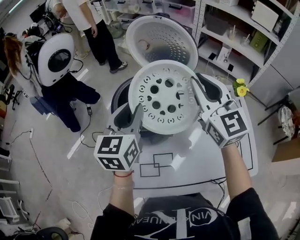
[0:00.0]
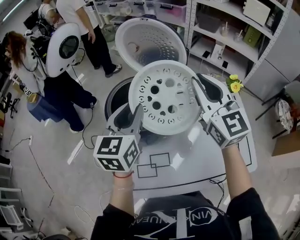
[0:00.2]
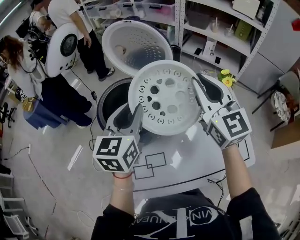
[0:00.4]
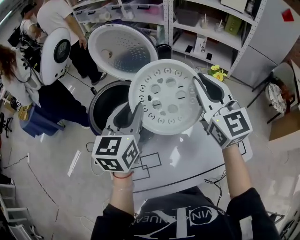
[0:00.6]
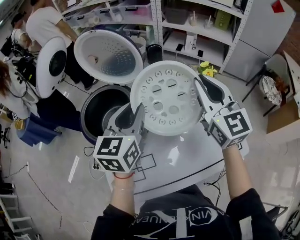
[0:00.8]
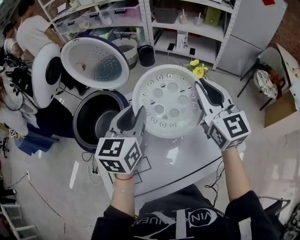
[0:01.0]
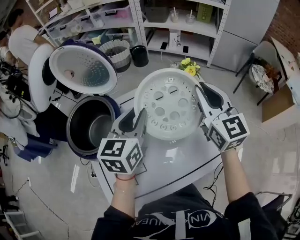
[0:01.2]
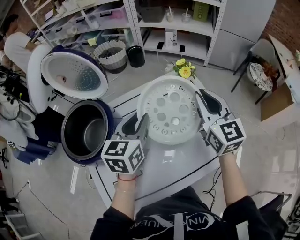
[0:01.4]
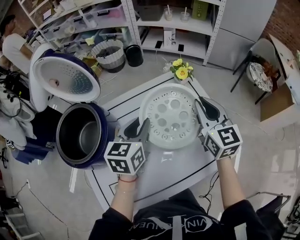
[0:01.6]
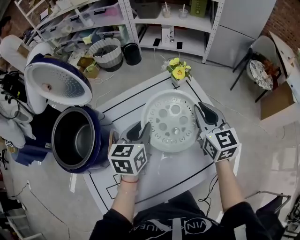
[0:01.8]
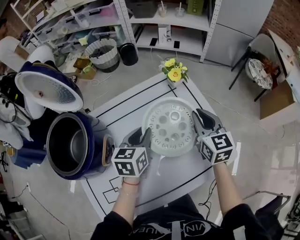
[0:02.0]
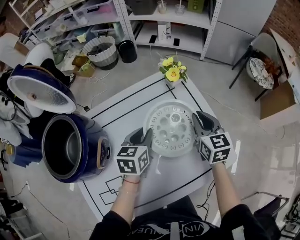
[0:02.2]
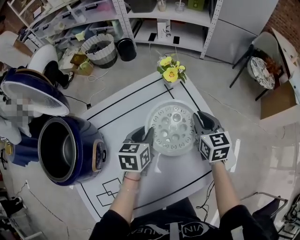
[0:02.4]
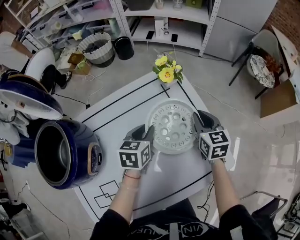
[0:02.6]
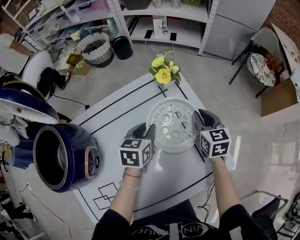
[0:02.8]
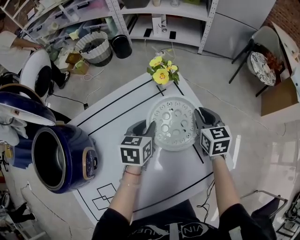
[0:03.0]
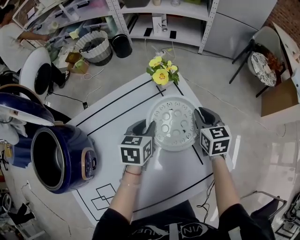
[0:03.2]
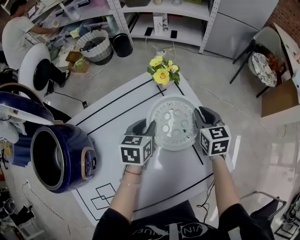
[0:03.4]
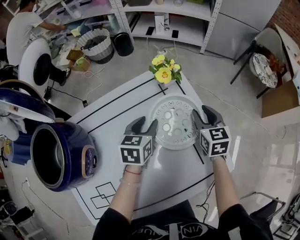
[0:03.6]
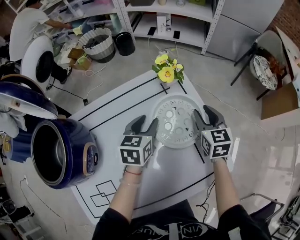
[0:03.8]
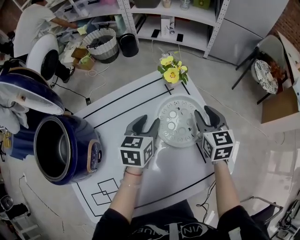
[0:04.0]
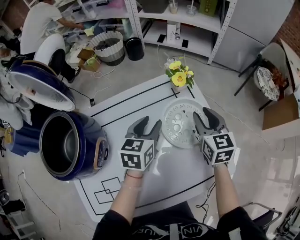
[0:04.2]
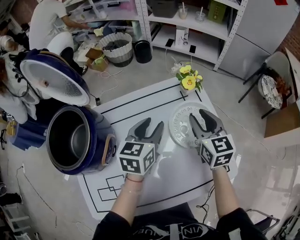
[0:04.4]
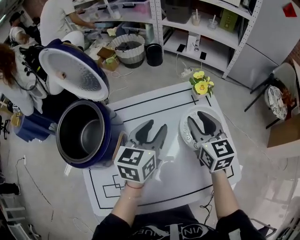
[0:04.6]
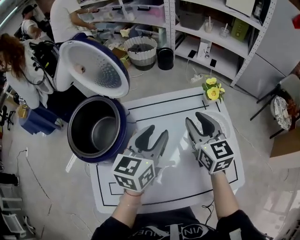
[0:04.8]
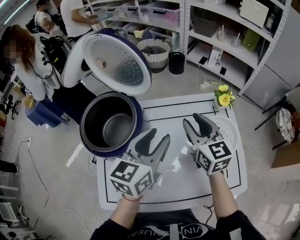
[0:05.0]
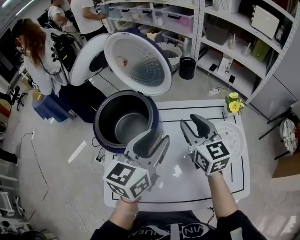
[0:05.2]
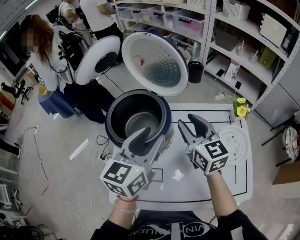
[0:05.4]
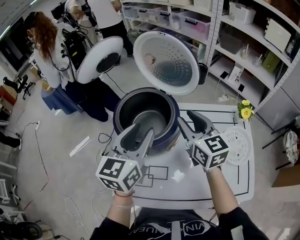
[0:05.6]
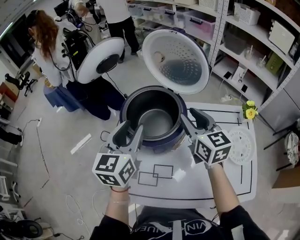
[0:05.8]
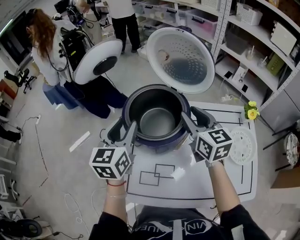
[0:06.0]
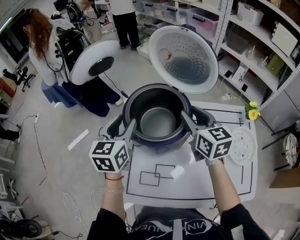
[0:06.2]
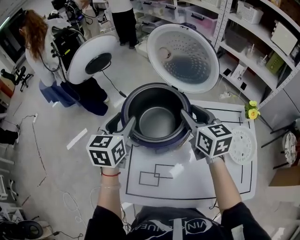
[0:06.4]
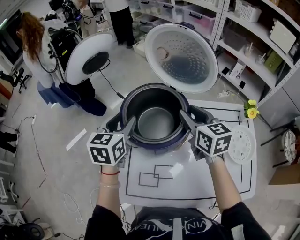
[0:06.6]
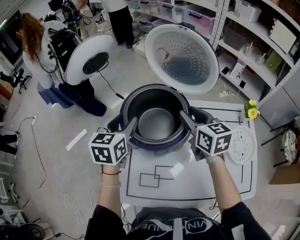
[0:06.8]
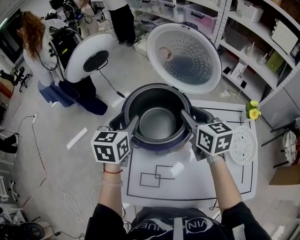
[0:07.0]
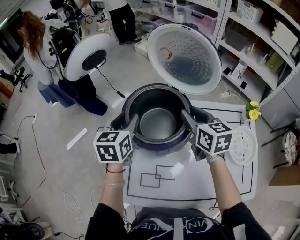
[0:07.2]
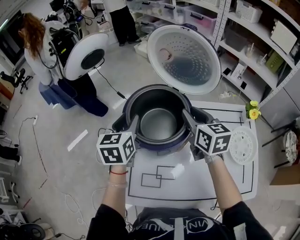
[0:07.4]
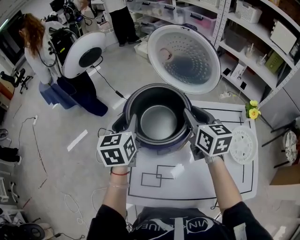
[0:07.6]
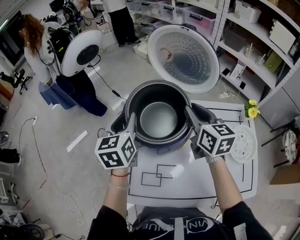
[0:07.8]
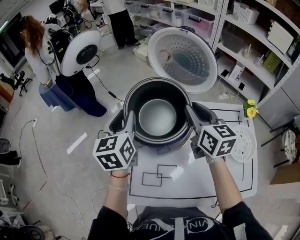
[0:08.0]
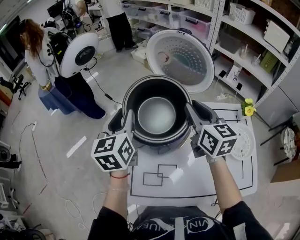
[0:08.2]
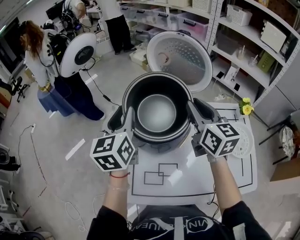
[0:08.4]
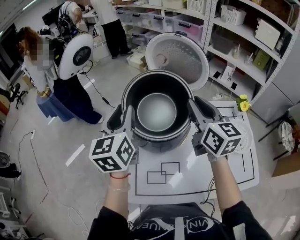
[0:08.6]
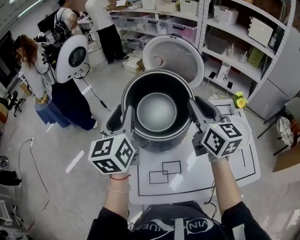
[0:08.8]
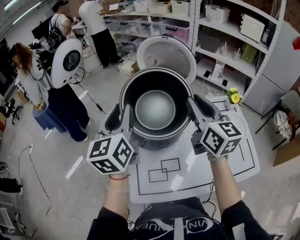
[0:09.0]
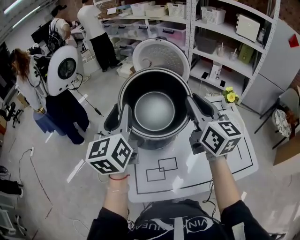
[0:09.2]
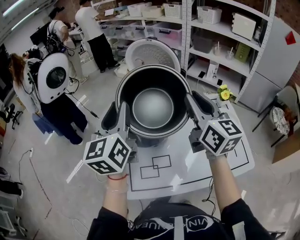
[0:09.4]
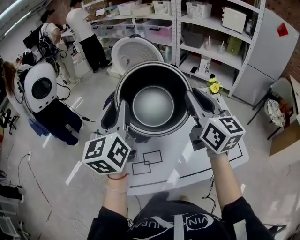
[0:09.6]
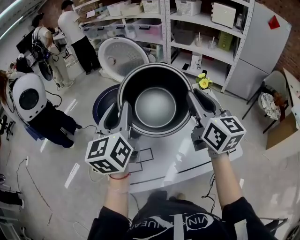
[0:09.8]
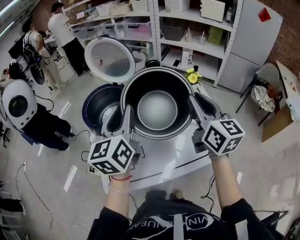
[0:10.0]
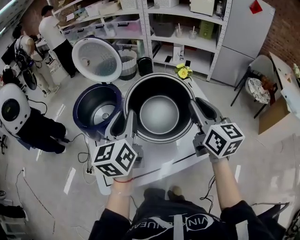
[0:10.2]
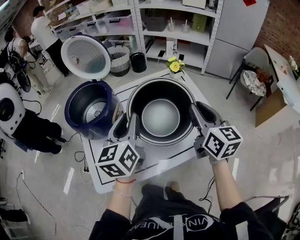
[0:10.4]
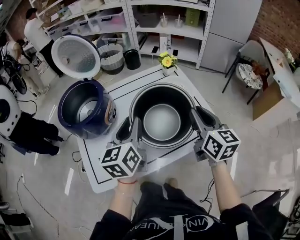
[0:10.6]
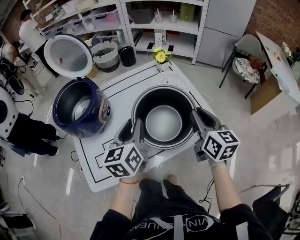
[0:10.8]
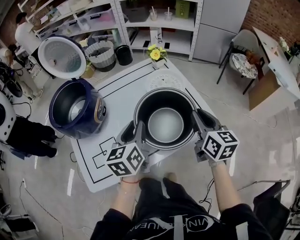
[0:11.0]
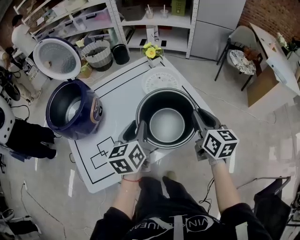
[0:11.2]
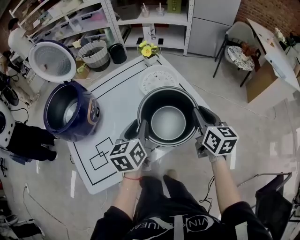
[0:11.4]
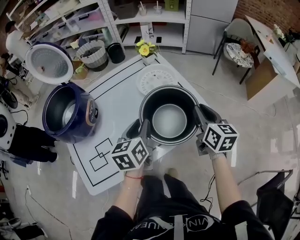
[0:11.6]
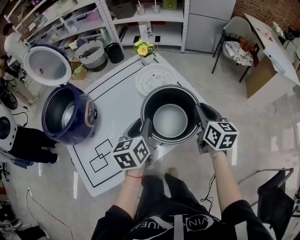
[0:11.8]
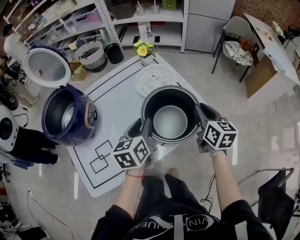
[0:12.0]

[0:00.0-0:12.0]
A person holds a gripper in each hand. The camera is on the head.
0:00.0 to 0:01.6: The left gripper moves some 35 cm, and turns by some 30 degrees; the right gripper moves about 35 cm, and swivels about 30 degrees.
0:01.6 to 0:03.0: Both grippers travel together downward, to the right and forward, roughly 25 cm. The right gripper rotates about 20 degrees.
0:03.0 to 0:04.4: The left gripper shifts about 10 cm upward and to the left. Meanwhile the right gripper goes some 15 cm to the left and upward, and opens its fingers.
0:04.4 to 0:06.0: The left gripper moves about 50 cm, and turns by roughly 40 degrees; the right gripper ends up some 40 cm from where it was, and rotates some 30 degrees.
0:06.0 to 0:07.6: The left gripper ends up roughly 5 cm from where it was.
0:07.6 to 0:09.0: Both grippers move upward and backward, roughly 15 cm. The left gripper swivels approximately 20 degrees; the right gripper turns by approximately 20 degrees.
0:09.0 to 0:10.4: The right gripper travels to the right and backward by roughly 35 cm. The left gripper goes about 30 cm to the right, and turns by some 20 degrees.
0:10.4 to 0:12.0: The two grippers go some 20 cm to the right and downward. The left gripper rotates some 20 degrees. Meanwhile the right gripper swivels some 20 degrees.

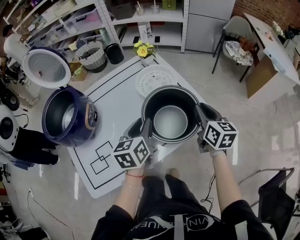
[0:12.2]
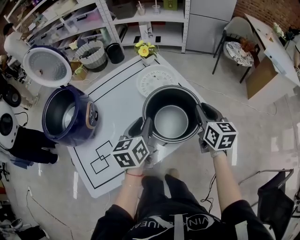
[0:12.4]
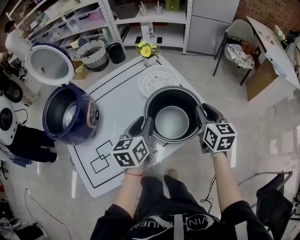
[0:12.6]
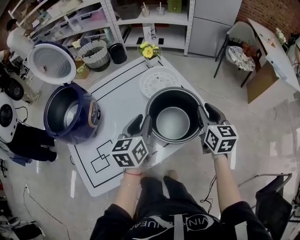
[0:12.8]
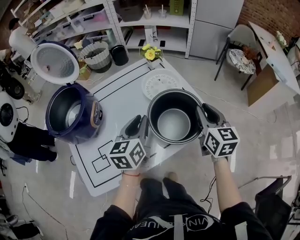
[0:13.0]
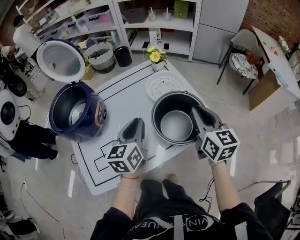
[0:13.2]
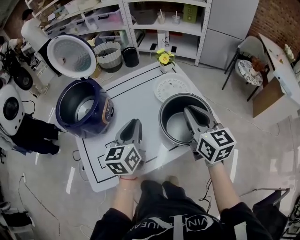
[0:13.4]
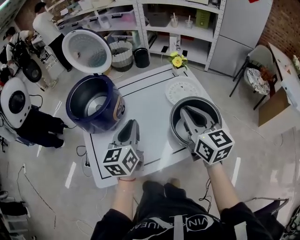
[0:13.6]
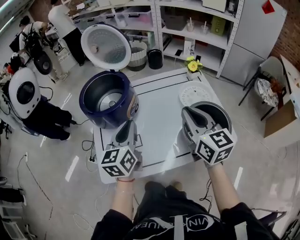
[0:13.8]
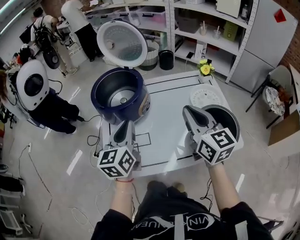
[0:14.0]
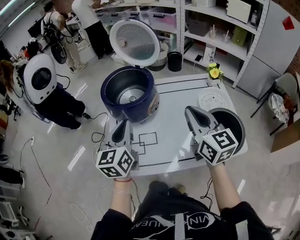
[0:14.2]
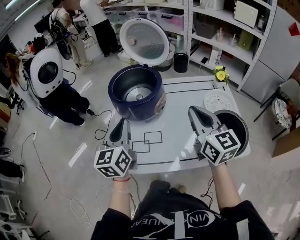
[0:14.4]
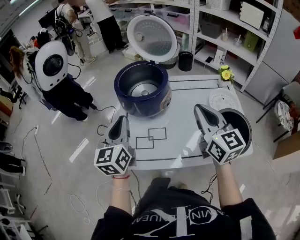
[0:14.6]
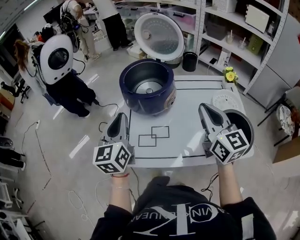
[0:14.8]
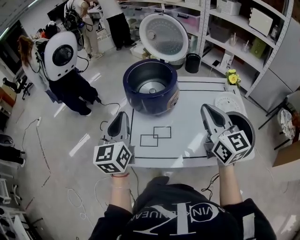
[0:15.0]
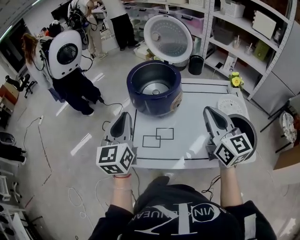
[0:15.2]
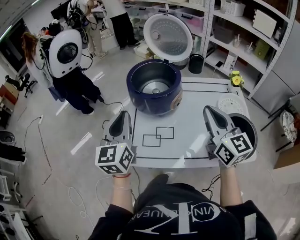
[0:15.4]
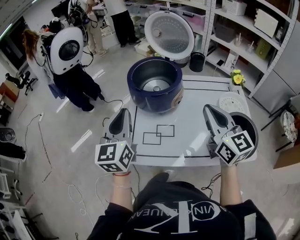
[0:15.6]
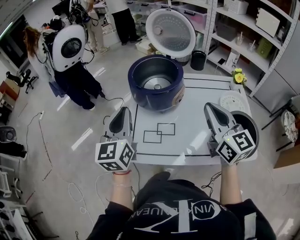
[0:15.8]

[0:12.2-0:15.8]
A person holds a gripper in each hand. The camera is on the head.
0:12.2 to 0:14.0: The right gripper moves some 30 cm, and changes its angle by about 40 degrees. The left gripper ends up roughly 30 cm from where it was, and changes its angle by roughly 30 degrees.
0:14.0 to 0:15.8: The left gripper is displaced to the left by about 15 cm. The right gripper travels to the left by about 5 cm.

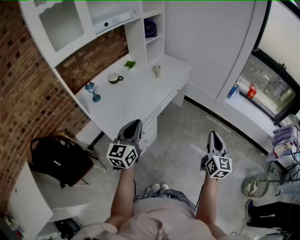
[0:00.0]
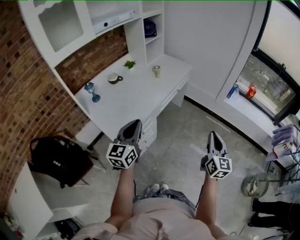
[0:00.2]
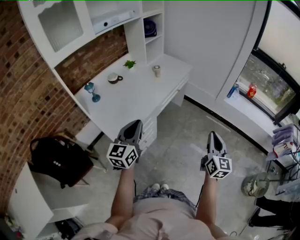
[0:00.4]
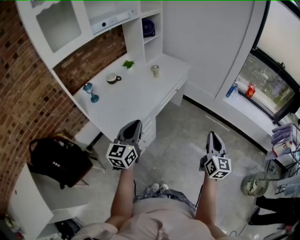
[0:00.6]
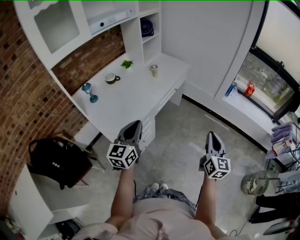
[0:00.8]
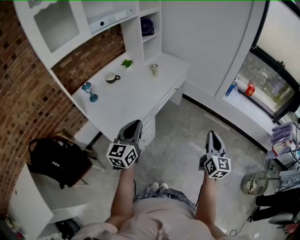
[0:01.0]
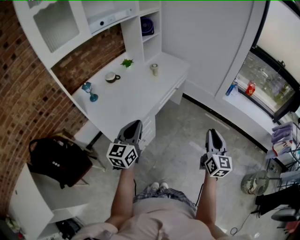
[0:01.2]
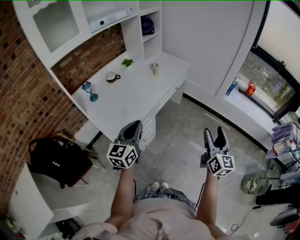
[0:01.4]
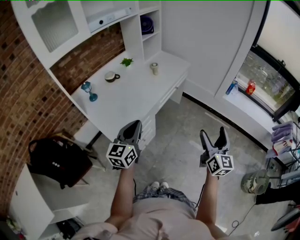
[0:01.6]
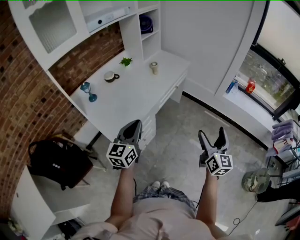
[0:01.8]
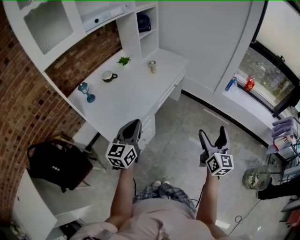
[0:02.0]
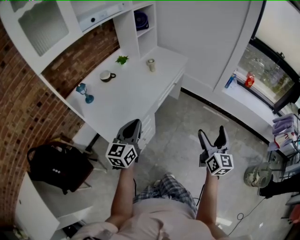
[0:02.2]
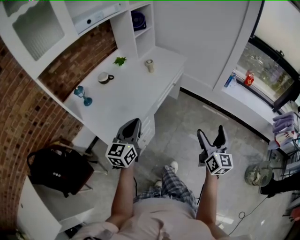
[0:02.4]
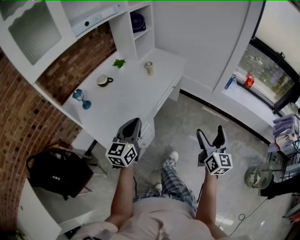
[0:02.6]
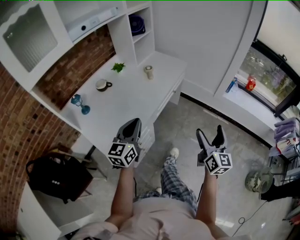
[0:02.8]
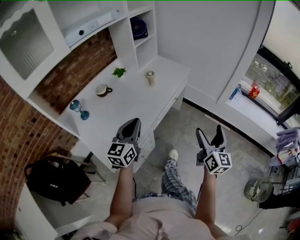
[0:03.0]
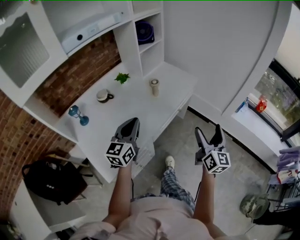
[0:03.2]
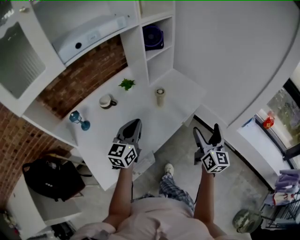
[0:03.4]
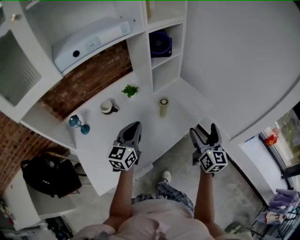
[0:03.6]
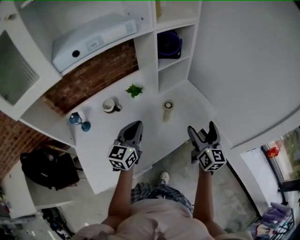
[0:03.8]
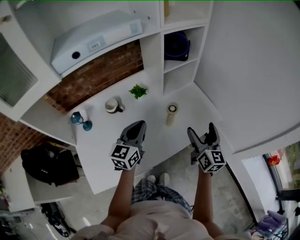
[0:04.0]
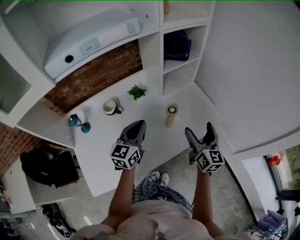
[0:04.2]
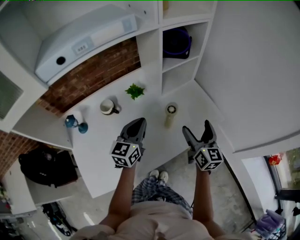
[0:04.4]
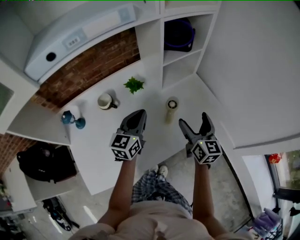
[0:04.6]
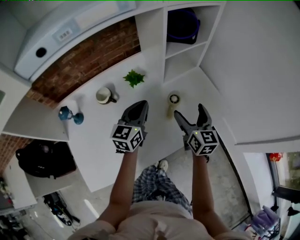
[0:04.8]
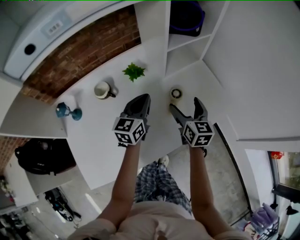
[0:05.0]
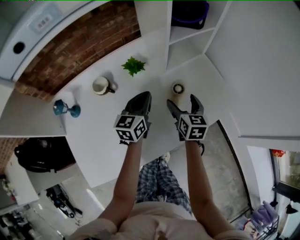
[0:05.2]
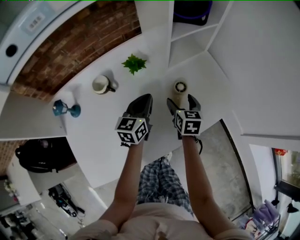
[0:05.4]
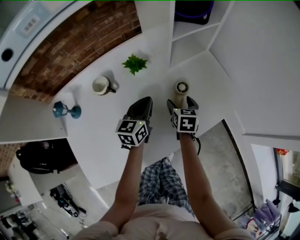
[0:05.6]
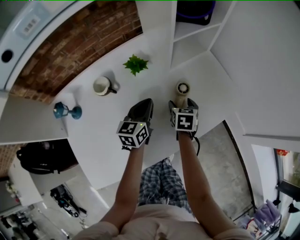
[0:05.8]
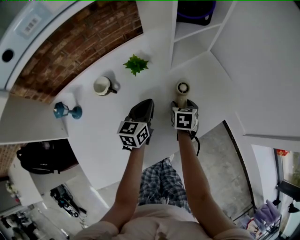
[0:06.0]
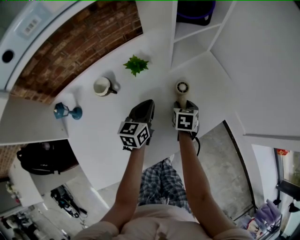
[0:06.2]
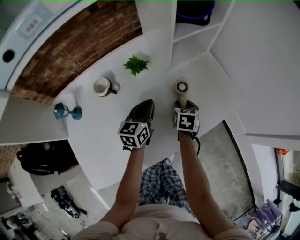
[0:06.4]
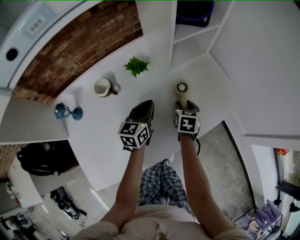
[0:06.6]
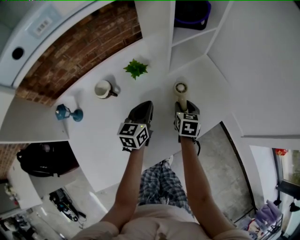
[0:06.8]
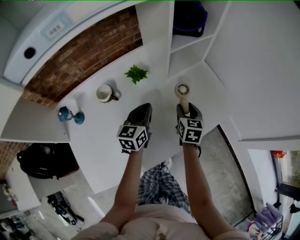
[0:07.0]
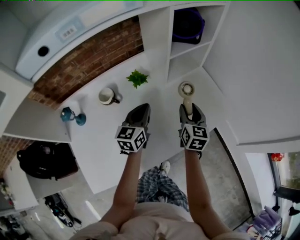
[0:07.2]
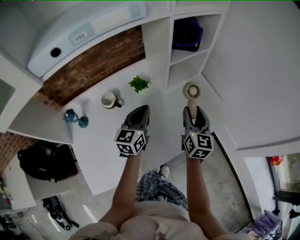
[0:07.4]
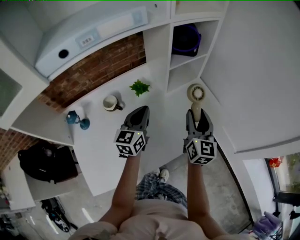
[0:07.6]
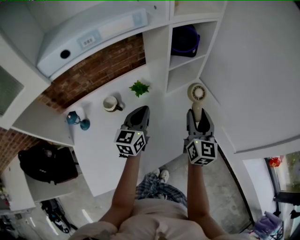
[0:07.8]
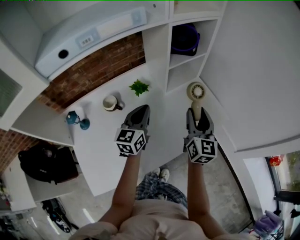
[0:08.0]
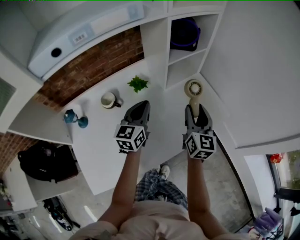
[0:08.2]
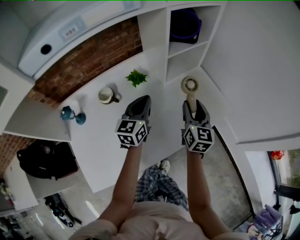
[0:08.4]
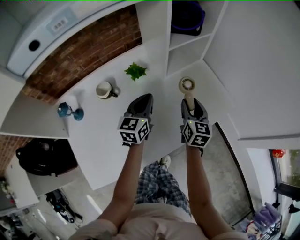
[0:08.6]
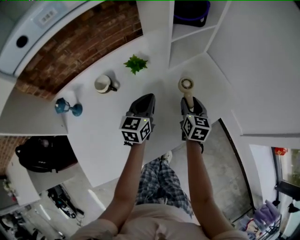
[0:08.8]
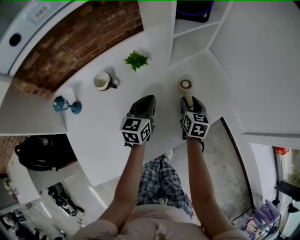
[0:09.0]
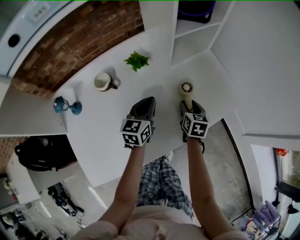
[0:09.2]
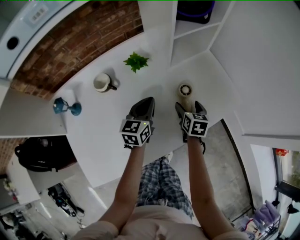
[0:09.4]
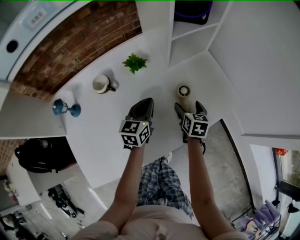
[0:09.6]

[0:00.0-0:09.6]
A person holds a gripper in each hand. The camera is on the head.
0:00.0 to 0:01.6: The right gripper opens.
0:01.6 to 0:03.2: The two grippers go roughly 25 cm forward.
0:03.2 to 0:04.8: Both grippers travel together forward, about 35 cm. The right gripper rotates approximately 40 degrees. The left gripper changes its angle by roughly 20 degrees.
0:04.8 to 0:06.4: The right gripper shifts approximately 20 cm downward, tilts its fingers some 40 degrees downward, and closes. Meanwhile the left gripper shifts about 10 cm downward.
0:06.4 to 0:08.0: The right gripper travels upward by about 25 cm, and points its fingers about 50 degrees further upward. The left gripper heads upward, covering about 15 cm.
0:08.0 to 0:09.6: The left gripper heads downward, covering about 15 cm. Meanwhile the right gripper moves downward, roughly 25 cm, tips its fingers downward by roughly 40 degrees, and opens up.
